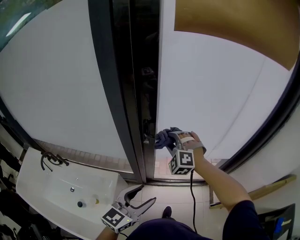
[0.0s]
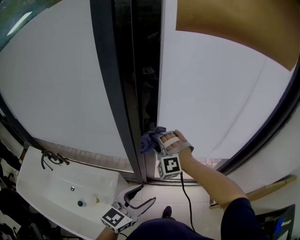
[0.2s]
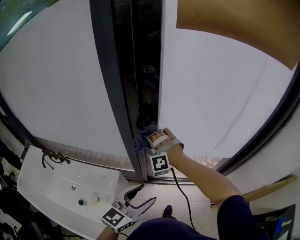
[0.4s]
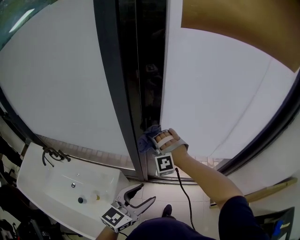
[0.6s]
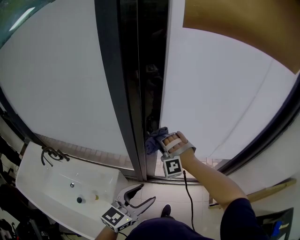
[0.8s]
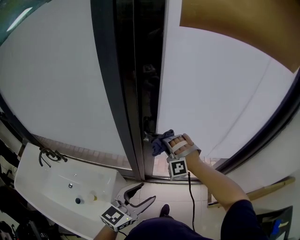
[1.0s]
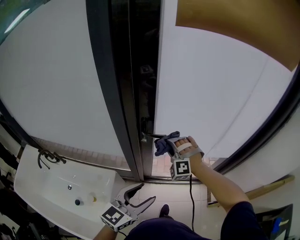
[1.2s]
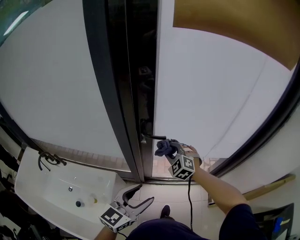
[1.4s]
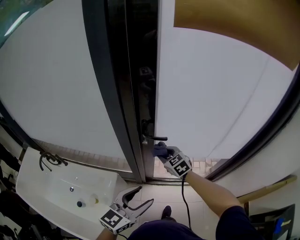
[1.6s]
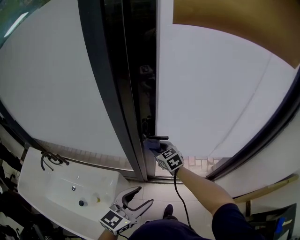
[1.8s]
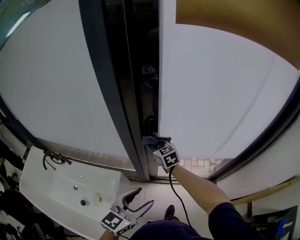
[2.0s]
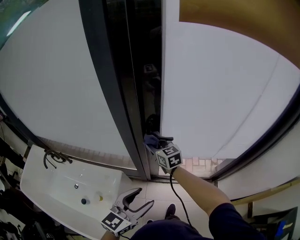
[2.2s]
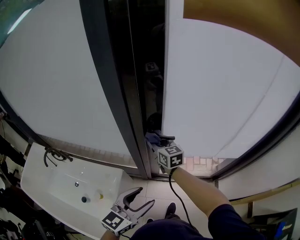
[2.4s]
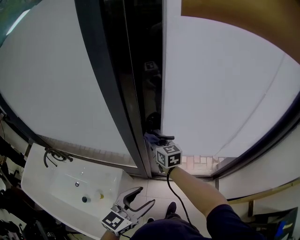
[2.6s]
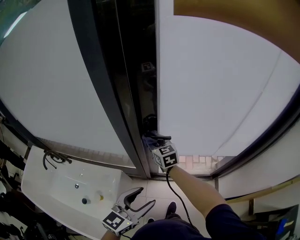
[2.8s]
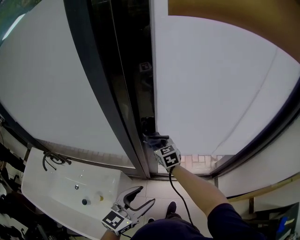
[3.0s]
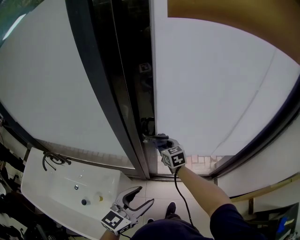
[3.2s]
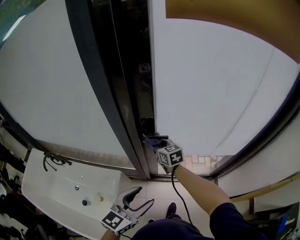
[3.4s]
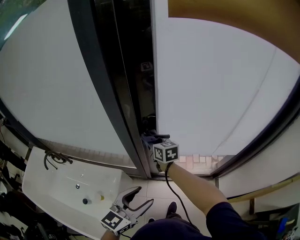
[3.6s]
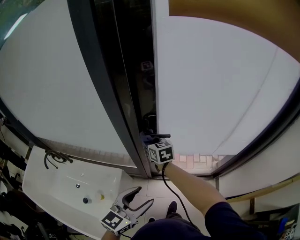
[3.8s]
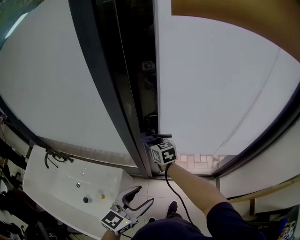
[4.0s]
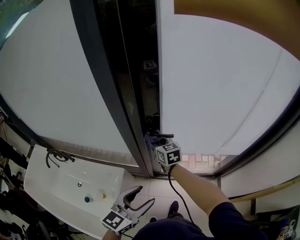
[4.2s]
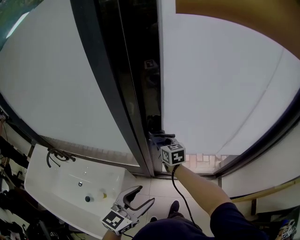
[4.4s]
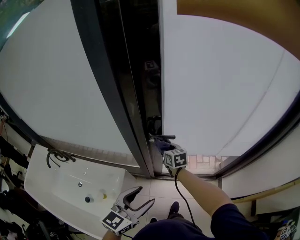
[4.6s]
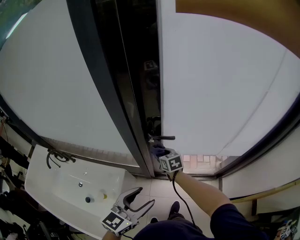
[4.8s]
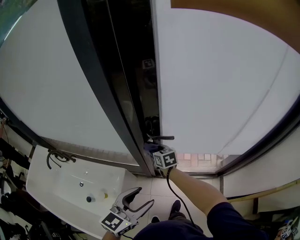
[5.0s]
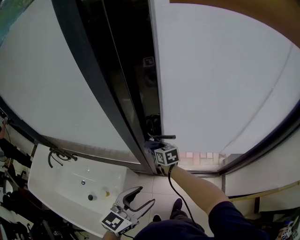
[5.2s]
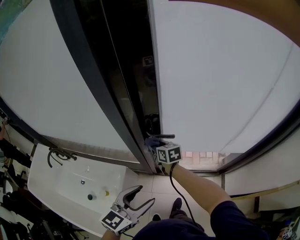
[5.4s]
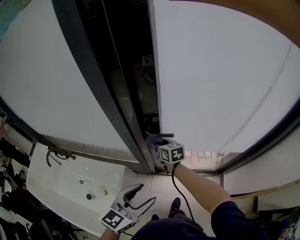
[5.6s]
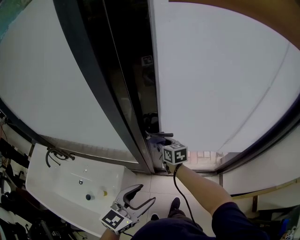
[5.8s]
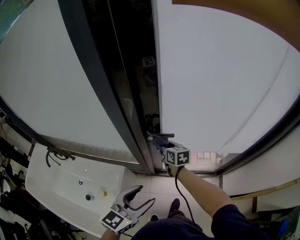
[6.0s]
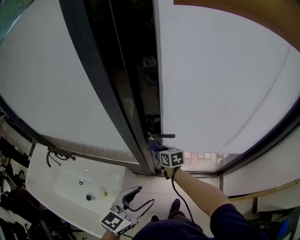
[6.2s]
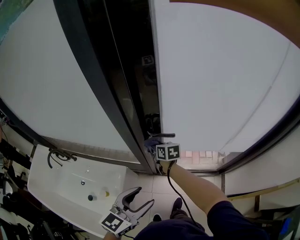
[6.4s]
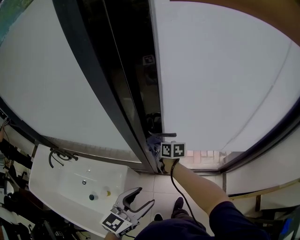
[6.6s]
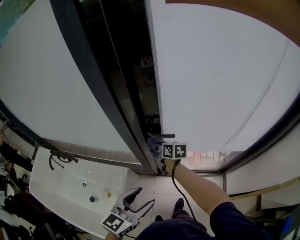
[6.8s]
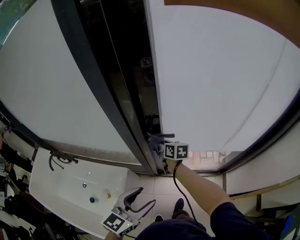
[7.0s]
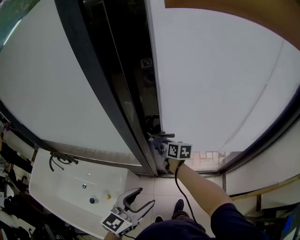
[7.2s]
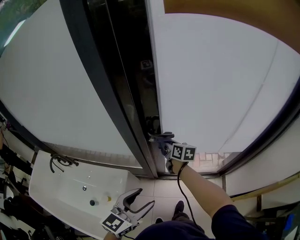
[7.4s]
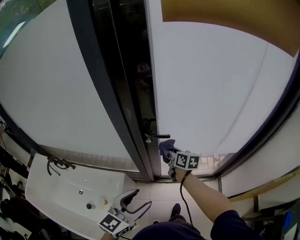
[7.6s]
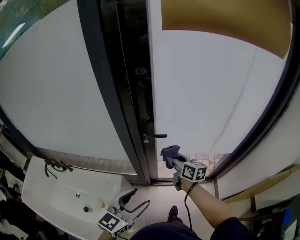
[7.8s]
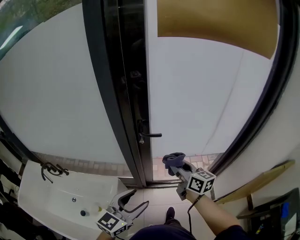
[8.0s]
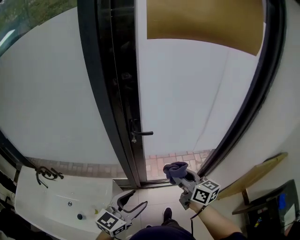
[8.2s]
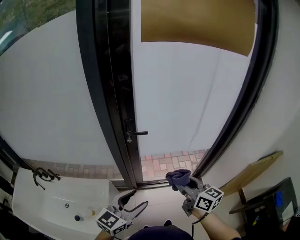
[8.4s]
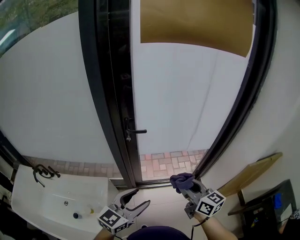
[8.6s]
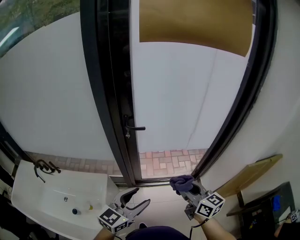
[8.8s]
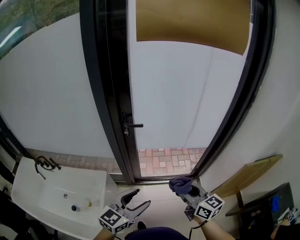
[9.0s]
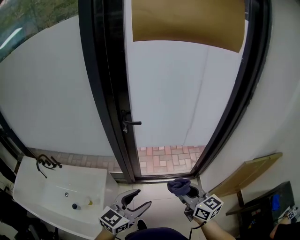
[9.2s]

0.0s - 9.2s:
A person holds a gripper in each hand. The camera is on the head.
0.0s - 1.6s: The right gripper shifts roughly 10 cm downward, travels to the left and back again, about 10 cm each way, and rotates around the line of its fingers by approximately 50 degrees, clockwise from behind.
1.6s - 3.0s: The right gripper goes about 5 cm forward.
3.0s - 4.6s: The right gripper is displaced downward by about 5 cm.
6.2s - 7.6s: The right gripper travels to the right and upward by some 10 cm, and swivels roughly 20 degrees.
7.6s - 9.2s: The right gripper heads backward and to the right, covering approximately 40 cm, and rotates approximately 30 degrees, while the left gripper travels backward and to the right by approximately 20 cm.

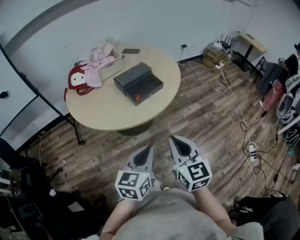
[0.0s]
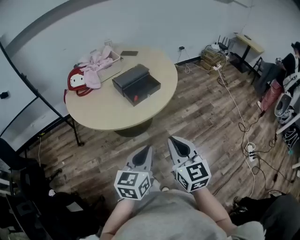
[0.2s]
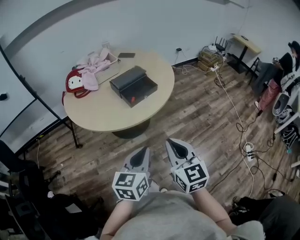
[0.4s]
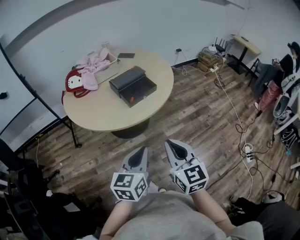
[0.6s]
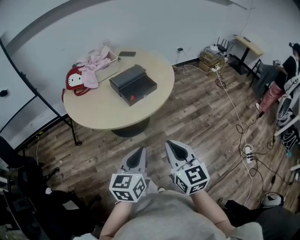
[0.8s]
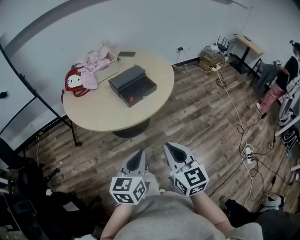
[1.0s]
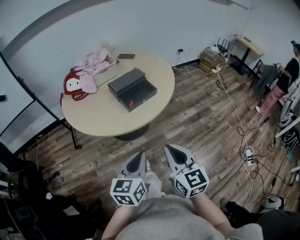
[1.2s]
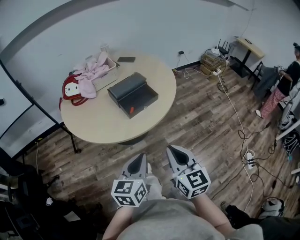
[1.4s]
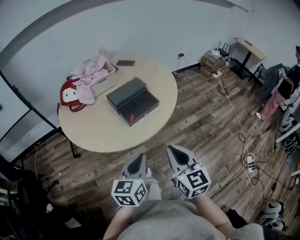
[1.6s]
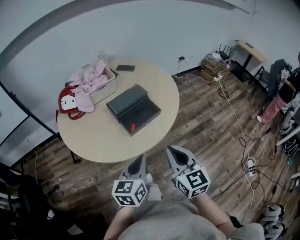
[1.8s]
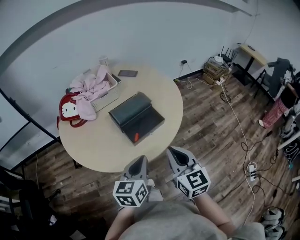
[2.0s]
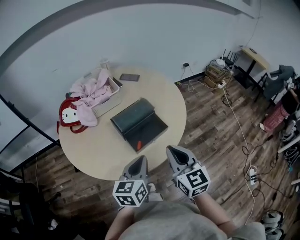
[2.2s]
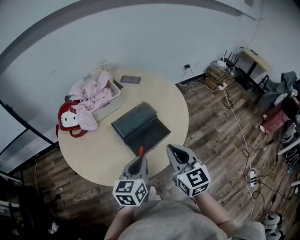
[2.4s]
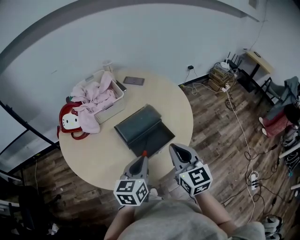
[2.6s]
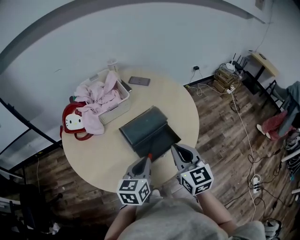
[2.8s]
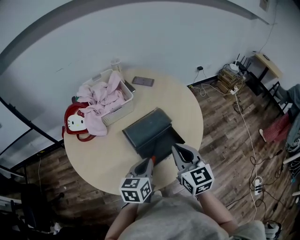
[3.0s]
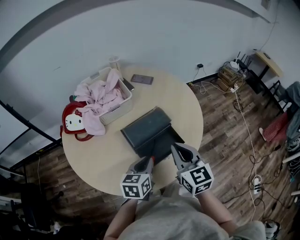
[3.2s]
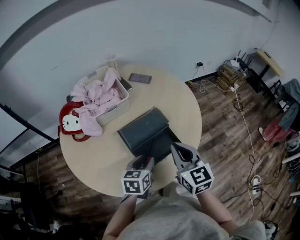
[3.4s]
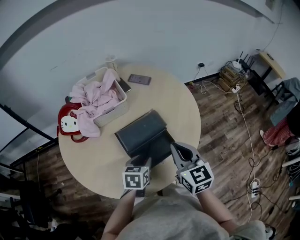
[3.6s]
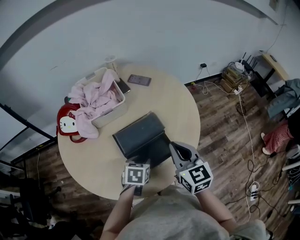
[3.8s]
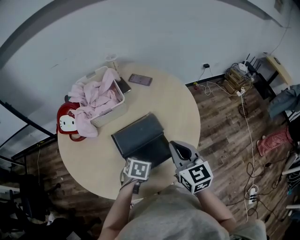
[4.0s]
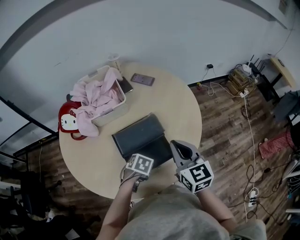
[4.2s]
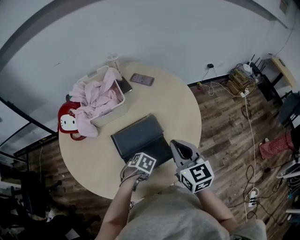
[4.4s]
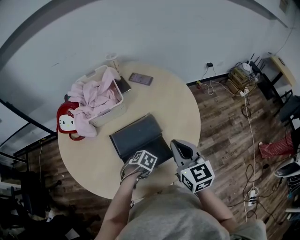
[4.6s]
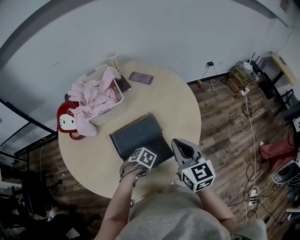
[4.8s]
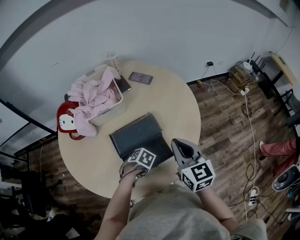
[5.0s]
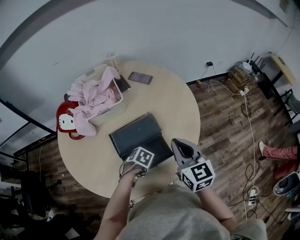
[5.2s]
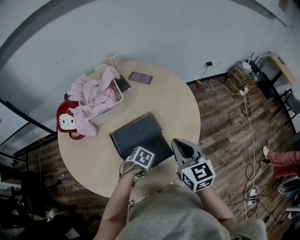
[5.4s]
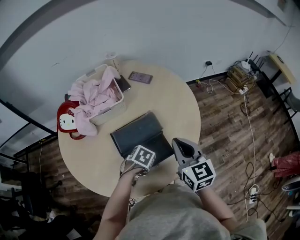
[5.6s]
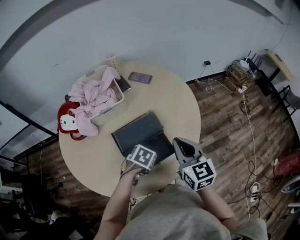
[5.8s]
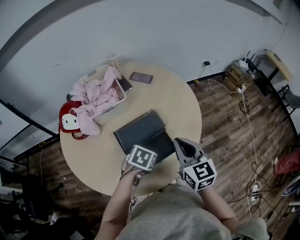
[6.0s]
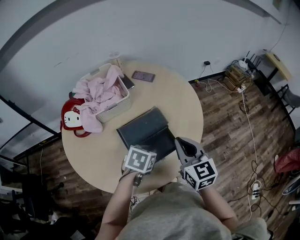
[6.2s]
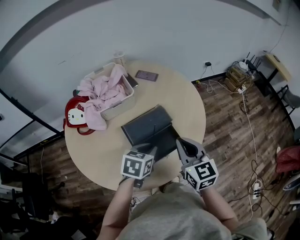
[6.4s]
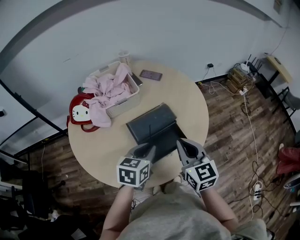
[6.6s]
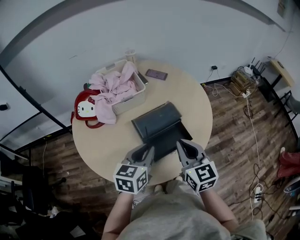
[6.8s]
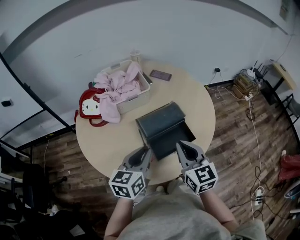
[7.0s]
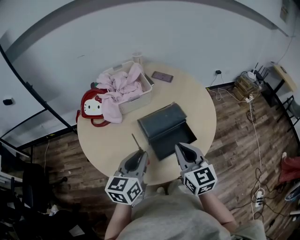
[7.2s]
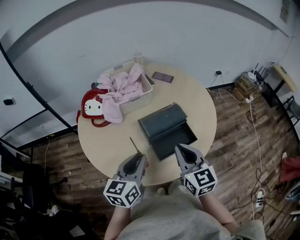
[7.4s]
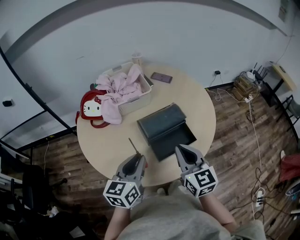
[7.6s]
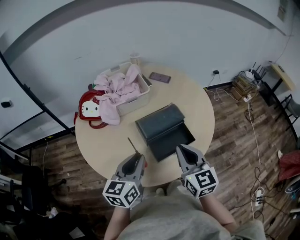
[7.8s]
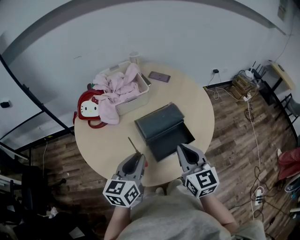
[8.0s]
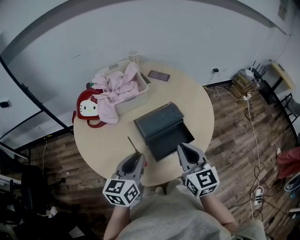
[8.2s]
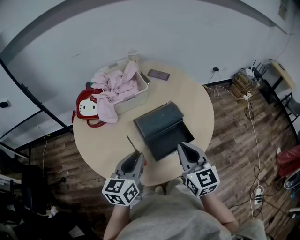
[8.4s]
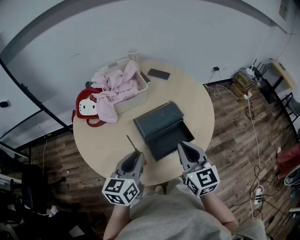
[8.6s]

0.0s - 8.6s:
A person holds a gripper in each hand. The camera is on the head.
0.0s - 1.4s: There are only small adjustments of the grippers.
1.4s - 2.8s: The two grippers go some 30 cm forward.
2.8s - 4.4s: The right gripper moves roughly 15 cm. The left gripper is displaced downward by roughly 20 cm, angles its fingers downward, by roughly 60 degrees, and opens its fingers.
4.4s - 5.8s: The left gripper moves upward, some 5 cm.
5.8s - 7.2s: The right gripper travels backward and to the left by about 15 cm; the left gripper heads upward, to the left and backward, covering roughly 25 cm, and tips its fingers upward by about 60 degrees.
7.2s - 8.6s: The grippers stay close to where they were, moving slightly.

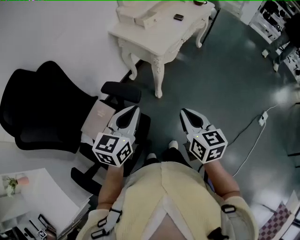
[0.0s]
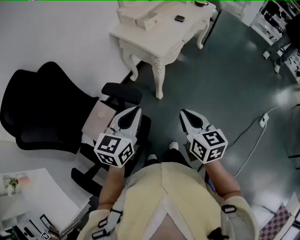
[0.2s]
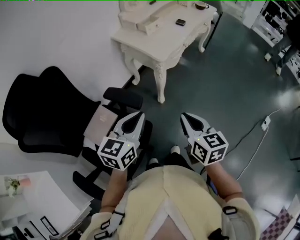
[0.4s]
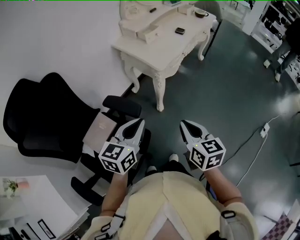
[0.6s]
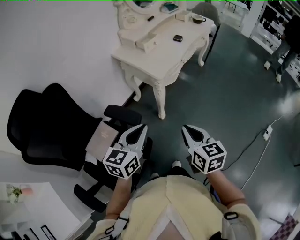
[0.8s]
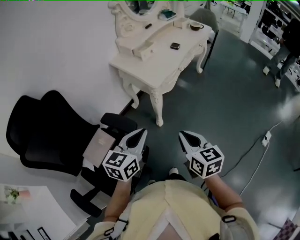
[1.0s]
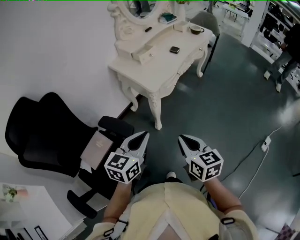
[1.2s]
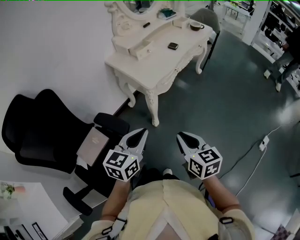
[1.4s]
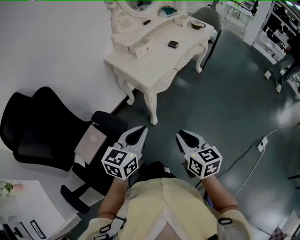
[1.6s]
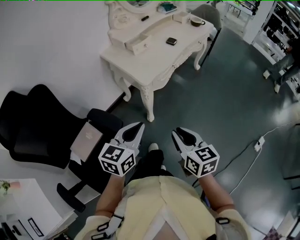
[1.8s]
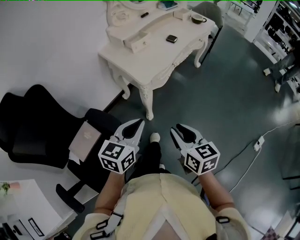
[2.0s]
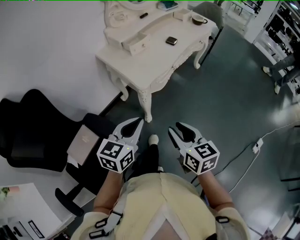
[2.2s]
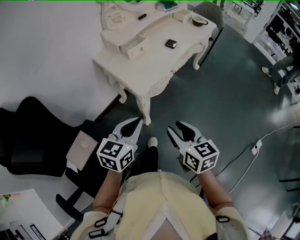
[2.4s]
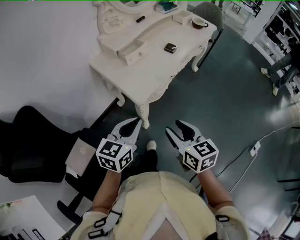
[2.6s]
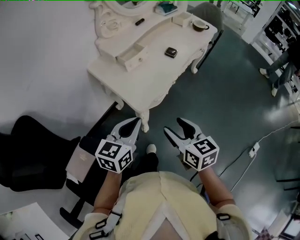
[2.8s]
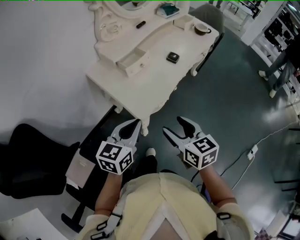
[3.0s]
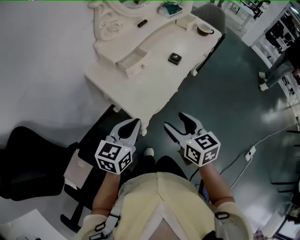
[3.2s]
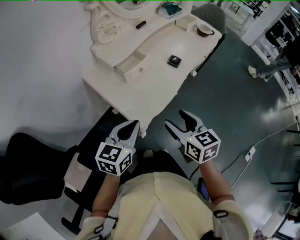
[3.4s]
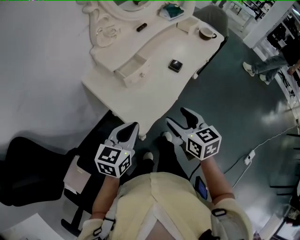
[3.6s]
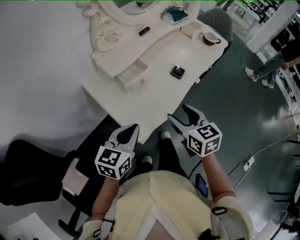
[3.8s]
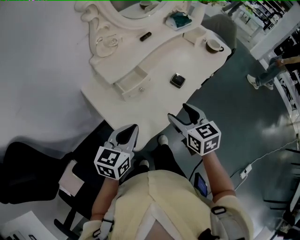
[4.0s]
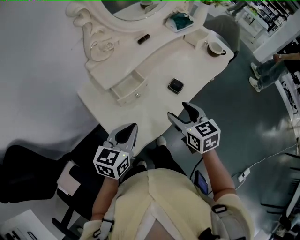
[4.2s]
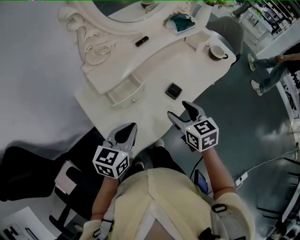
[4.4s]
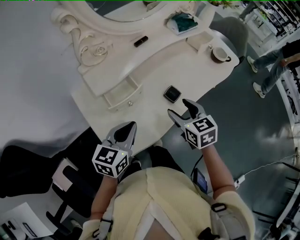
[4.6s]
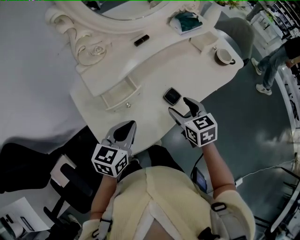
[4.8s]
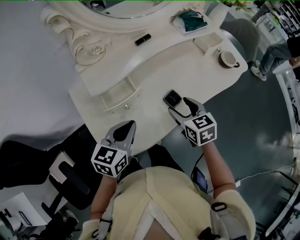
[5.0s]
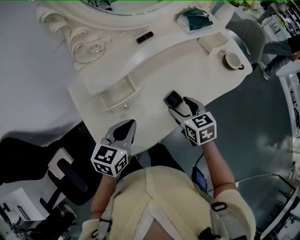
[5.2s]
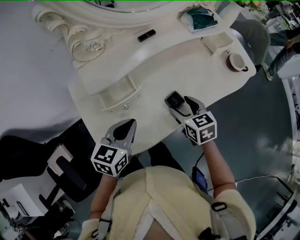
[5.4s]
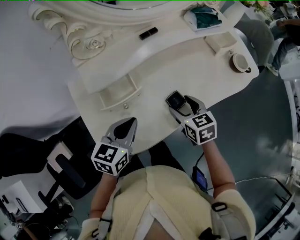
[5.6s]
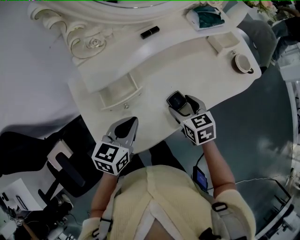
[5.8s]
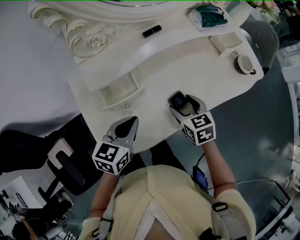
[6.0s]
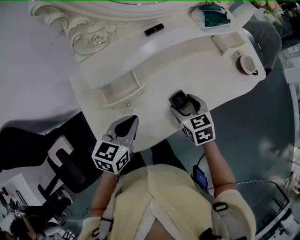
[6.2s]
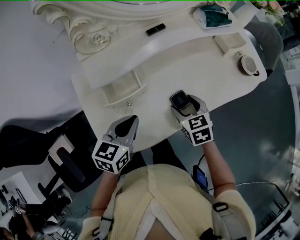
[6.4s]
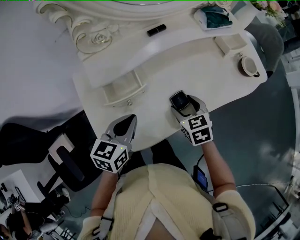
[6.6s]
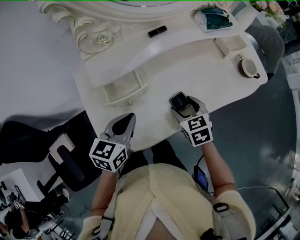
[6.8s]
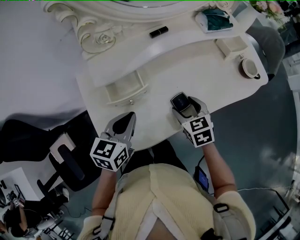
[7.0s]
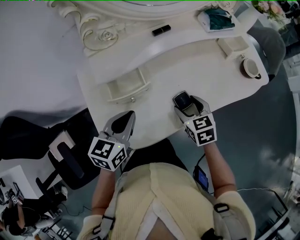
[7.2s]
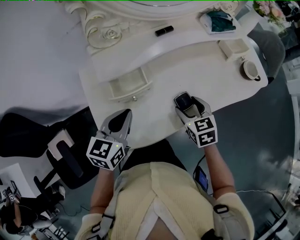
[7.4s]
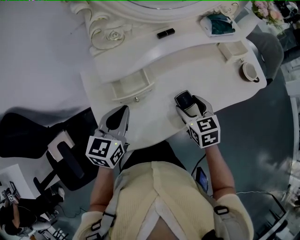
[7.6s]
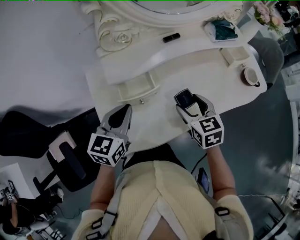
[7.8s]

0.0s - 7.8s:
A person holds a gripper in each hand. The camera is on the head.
0.0s - 1.6s: The two grippers go about 15 cm to the right and forward.
1.6s - 3.2s: Both grippers move forward, roughly 30 cm. The right gripper opens its fingers.
3.2s - 4.6s: The grippers both shift forward by about 25 cm.
4.6s - 6.2s: The right gripper goes roughly 10 cm downward and forward. The left gripper travels forward by some 5 cm.
6.2s - 7.8s: The right gripper goes roughly 5 cm upward; the left gripper moves to the left and upward, about 10 cm.
